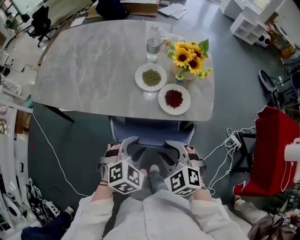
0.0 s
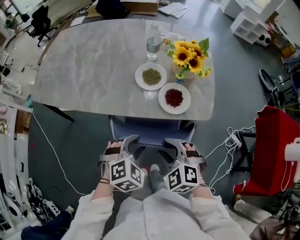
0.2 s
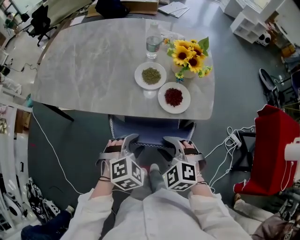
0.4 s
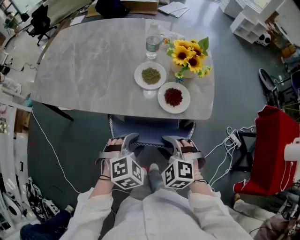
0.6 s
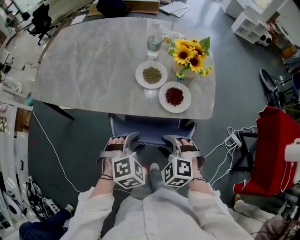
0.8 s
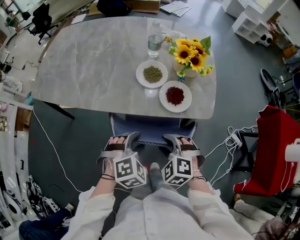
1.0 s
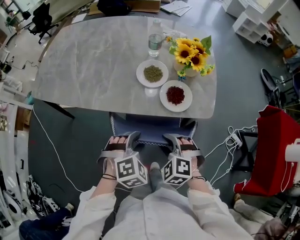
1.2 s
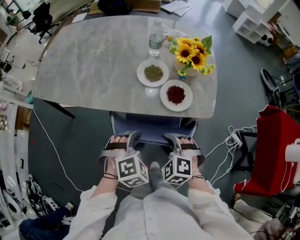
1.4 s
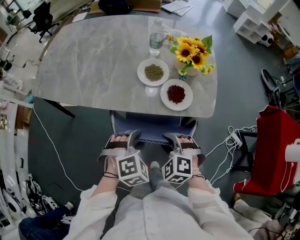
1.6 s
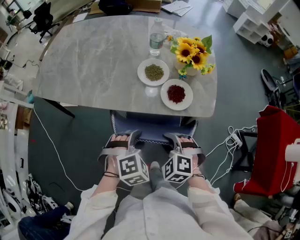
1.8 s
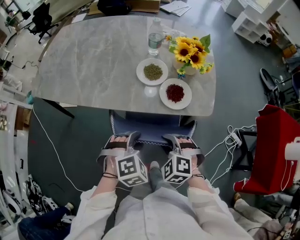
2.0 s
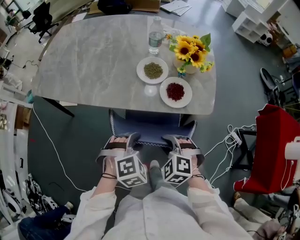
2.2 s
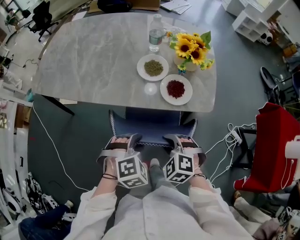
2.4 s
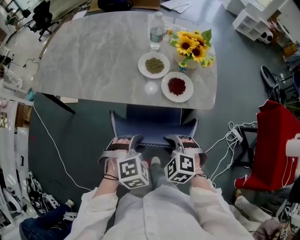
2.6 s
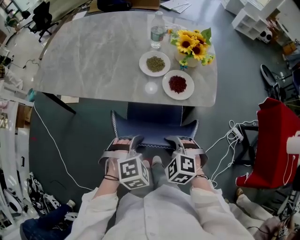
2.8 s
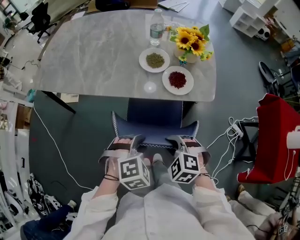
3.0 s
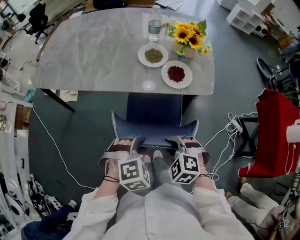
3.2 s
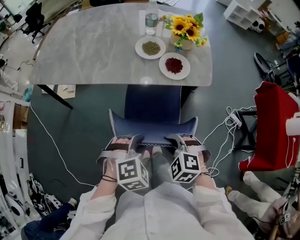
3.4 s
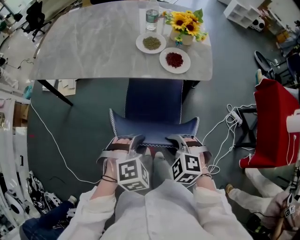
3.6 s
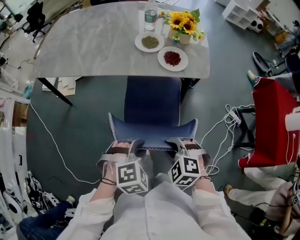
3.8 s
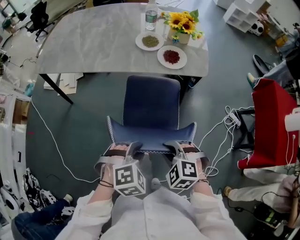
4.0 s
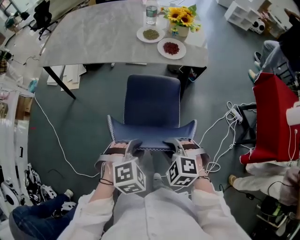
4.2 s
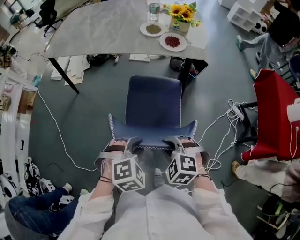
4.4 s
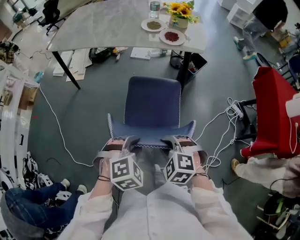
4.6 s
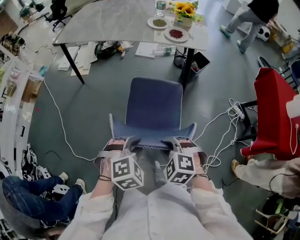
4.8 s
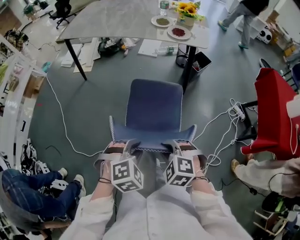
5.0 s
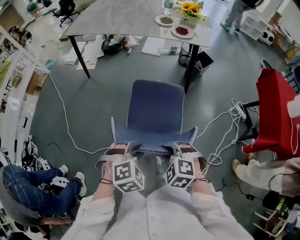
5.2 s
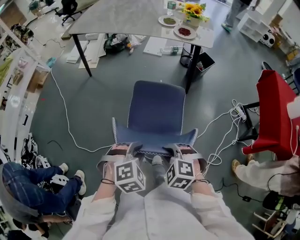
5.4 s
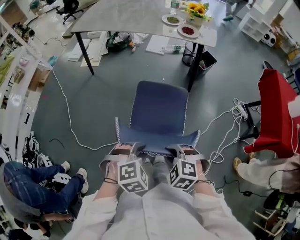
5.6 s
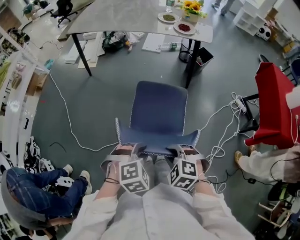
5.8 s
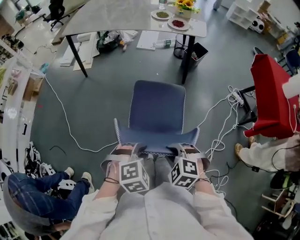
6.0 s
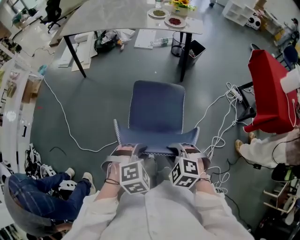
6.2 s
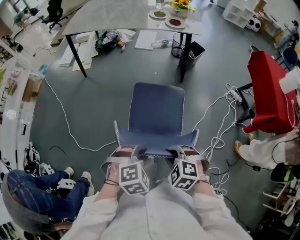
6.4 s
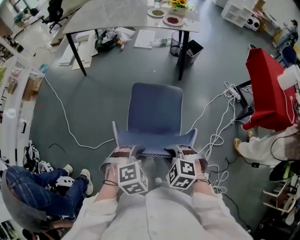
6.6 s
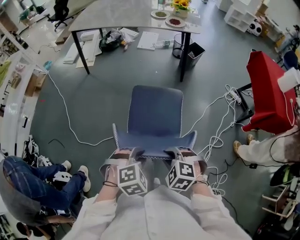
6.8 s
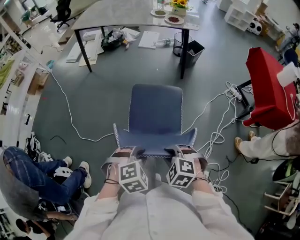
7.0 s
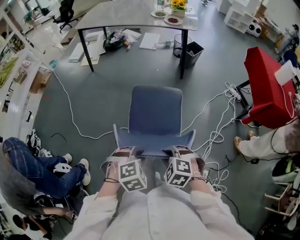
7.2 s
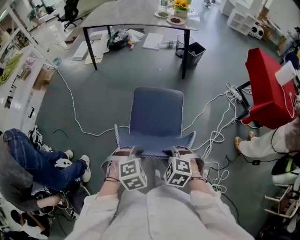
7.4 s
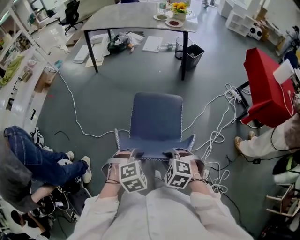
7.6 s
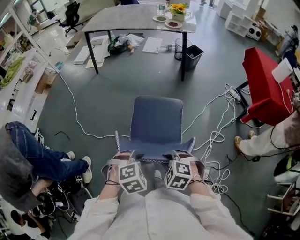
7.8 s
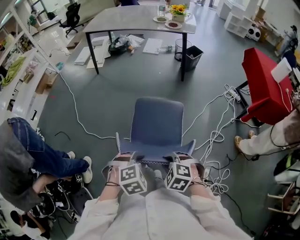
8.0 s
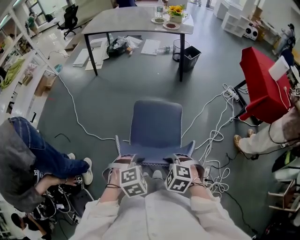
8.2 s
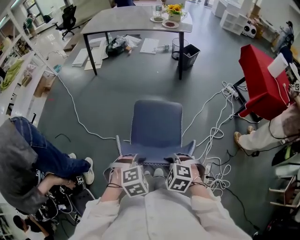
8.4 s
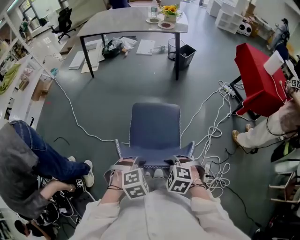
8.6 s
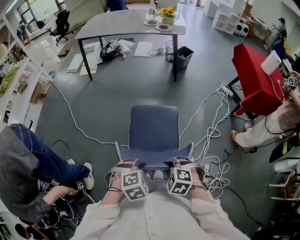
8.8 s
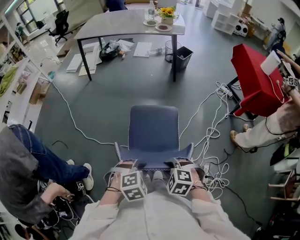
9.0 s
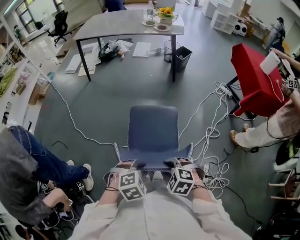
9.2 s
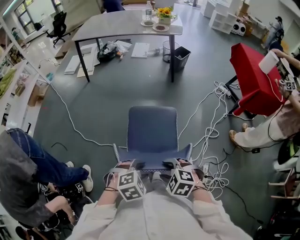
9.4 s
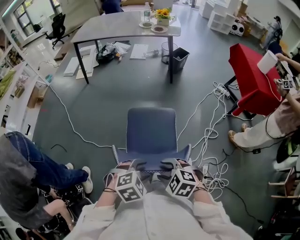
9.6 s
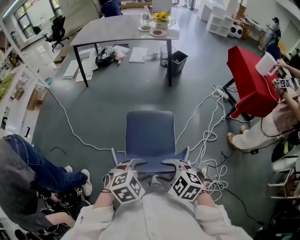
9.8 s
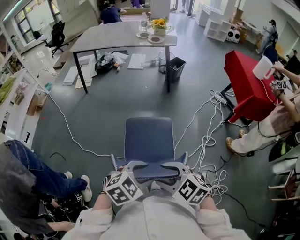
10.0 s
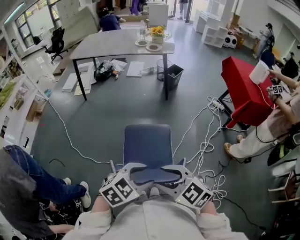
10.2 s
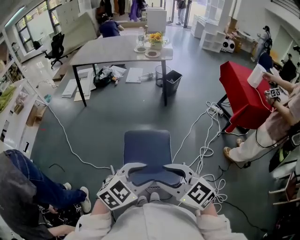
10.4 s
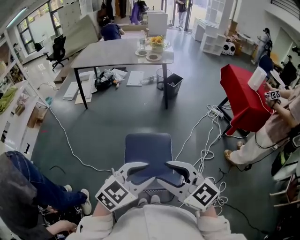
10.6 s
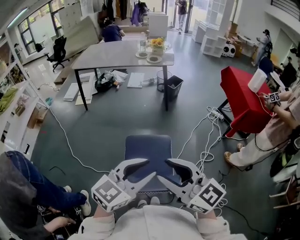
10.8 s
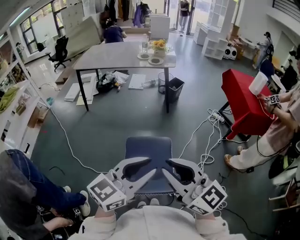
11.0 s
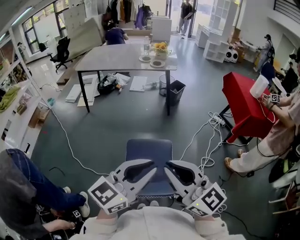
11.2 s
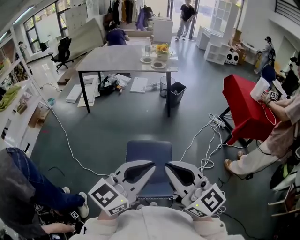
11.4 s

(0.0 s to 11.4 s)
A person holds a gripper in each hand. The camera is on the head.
0.0 s - 1.4 s: The right gripper shifts about 5 cm downward.
1.4 s - 2.8 s: Both grippers move backward, about 5 cm.
2.8 s - 4.2 s: The two grippers go about 25 cm backward.
4.2 s - 5.6 s: Both grippers move backward, roughly 30 cm.
5.6 s - 7.2 s: The grippers both shift backward by approximately 25 cm.
7.2 s - 8.6 s: The grippers both shift backward by some 15 cm.
8.6 s - 10.0 s: Both grippers move upward, about 10 cm. The right gripper changes its angle by roughly 30 degrees, and opens. Meanwhile the left gripper swivels roughly 30 degrees, and opens.
10.0 s - 11.4 s: The two grippers go some 20 cm upward. The right gripper points its fingers some 50 degrees further upward, and closes; the left gripper tilts its fingers roughly 50 degrees upward, and closes its fingers.

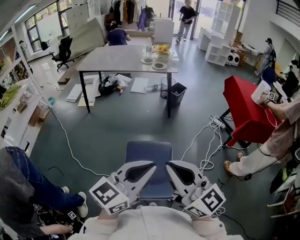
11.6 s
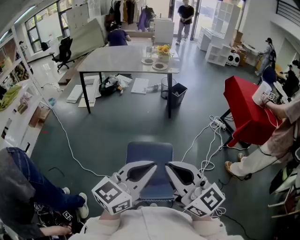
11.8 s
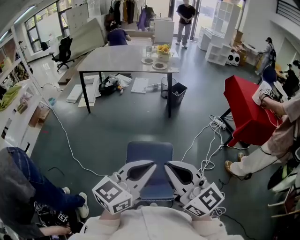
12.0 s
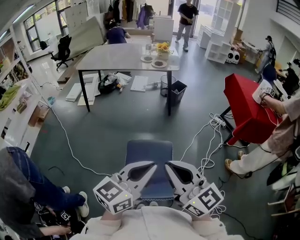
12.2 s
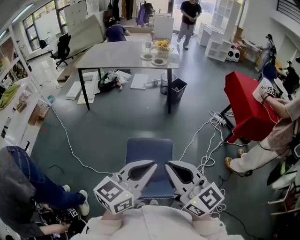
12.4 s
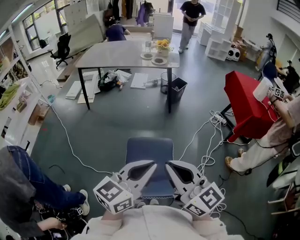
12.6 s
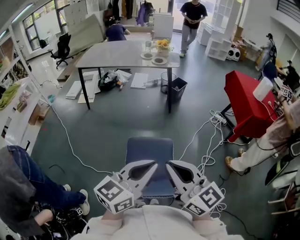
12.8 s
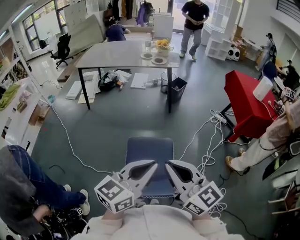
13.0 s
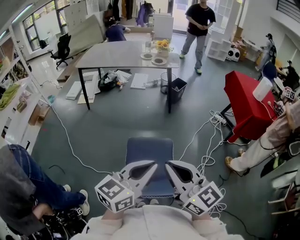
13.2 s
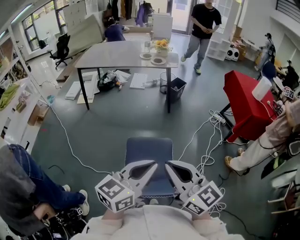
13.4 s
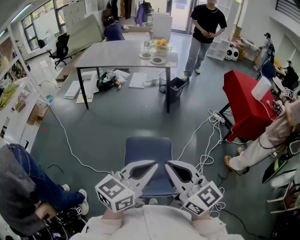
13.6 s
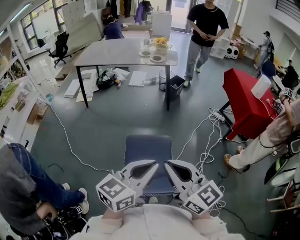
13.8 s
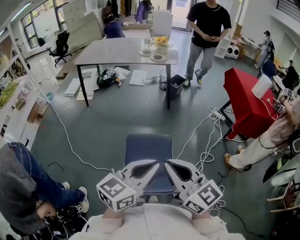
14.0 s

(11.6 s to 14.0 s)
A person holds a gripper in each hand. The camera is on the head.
11.6 s - 14.0 s: The grippers move only a little.

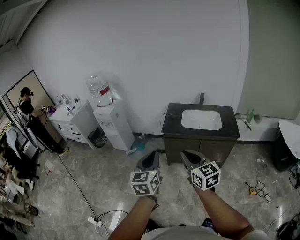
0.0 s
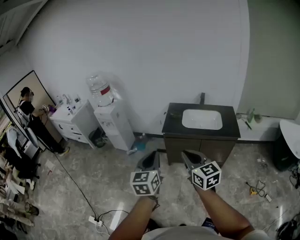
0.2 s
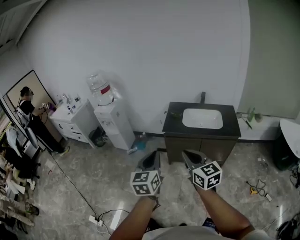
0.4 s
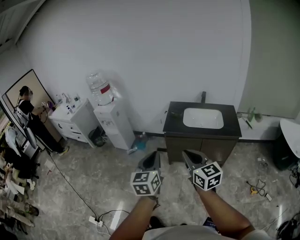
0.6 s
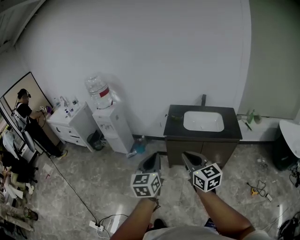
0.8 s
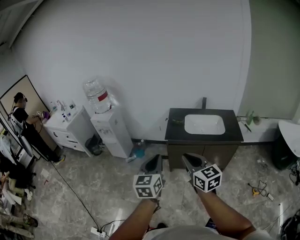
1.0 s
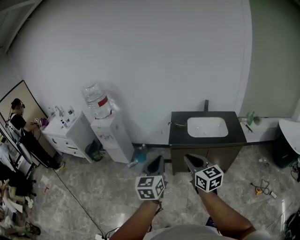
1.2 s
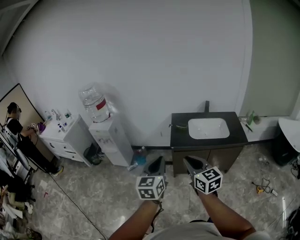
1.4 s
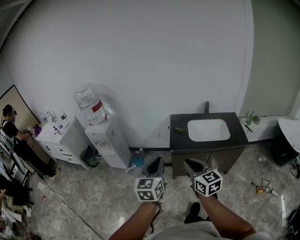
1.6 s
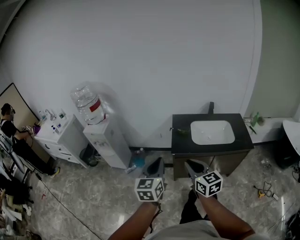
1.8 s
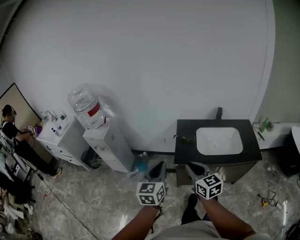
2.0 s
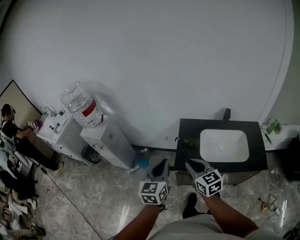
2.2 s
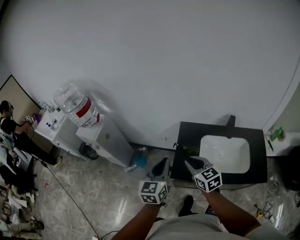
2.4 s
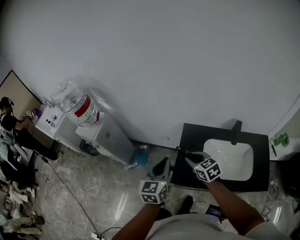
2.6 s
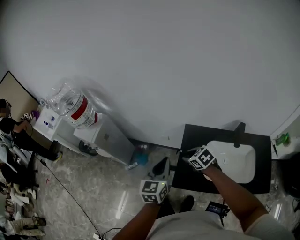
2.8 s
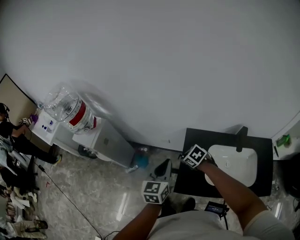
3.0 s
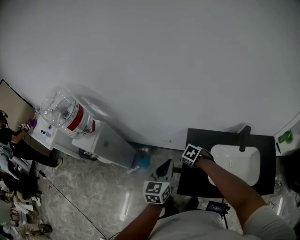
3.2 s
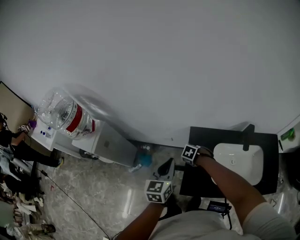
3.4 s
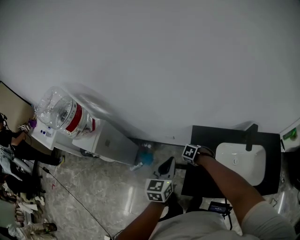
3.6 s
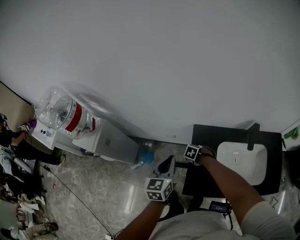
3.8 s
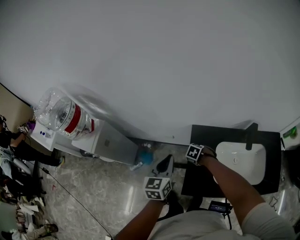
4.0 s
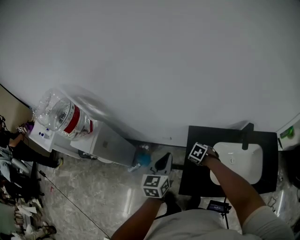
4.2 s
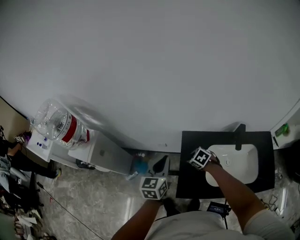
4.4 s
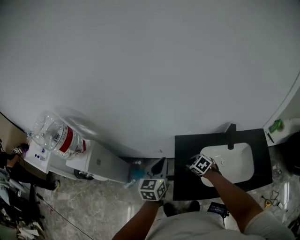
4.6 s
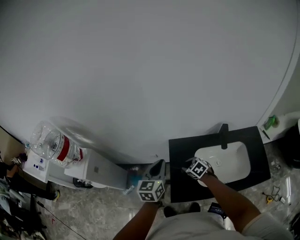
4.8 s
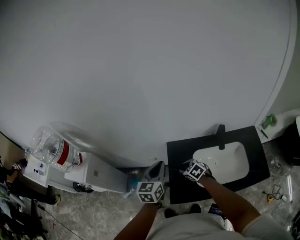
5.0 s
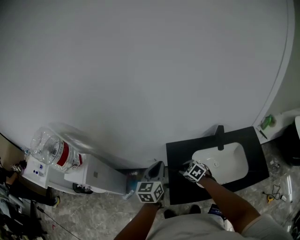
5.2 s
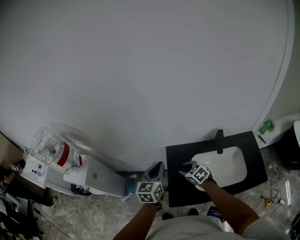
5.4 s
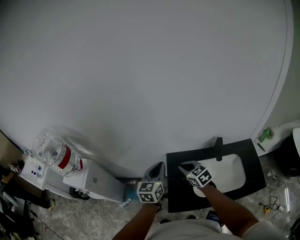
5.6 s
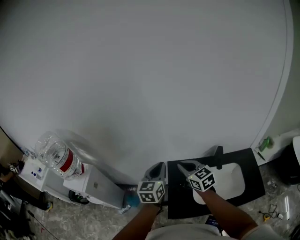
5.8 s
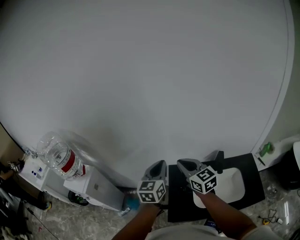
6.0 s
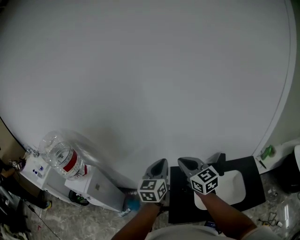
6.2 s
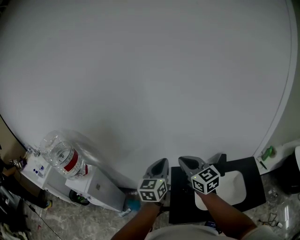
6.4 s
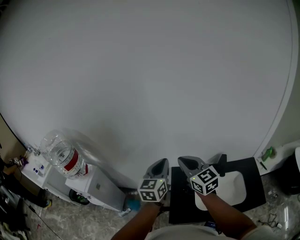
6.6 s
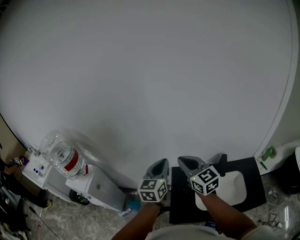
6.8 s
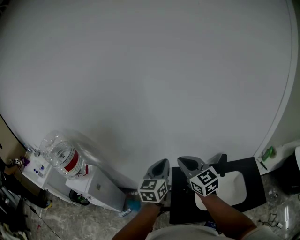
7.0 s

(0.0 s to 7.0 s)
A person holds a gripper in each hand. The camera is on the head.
0.0 s - 1.4 s: Both grippers travel together forward and to the left, roughly 20 cm.
1.4 s - 2.8 s: The two grippers travel together, forward, approximately 60 cm. The right gripper is displaced downward by approximately 25 cm, and tips its fingers downward by some 40 degrees.
2.8 s - 4.2 s: The left gripper shifts by roughly 15 cm. Meanwhile the right gripper shifts some 15 cm downward, and changes its angle by about 20 degrees.
4.2 s - 5.6 s: The right gripper goes approximately 25 cm upward, points its fingers about 30 degrees further upward, and closes its fingers. The left gripper goes approximately 10 cm upward.
5.6 s - 7.0 s: The left gripper goes roughly 10 cm upward; the right gripper goes about 20 cm upward, and turns by about 30 degrees.

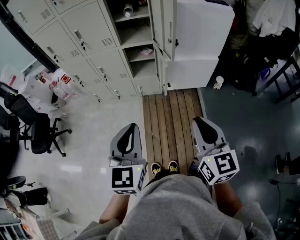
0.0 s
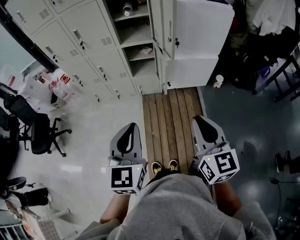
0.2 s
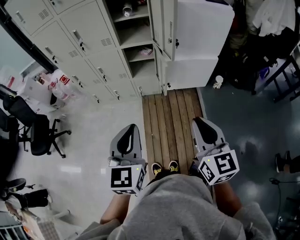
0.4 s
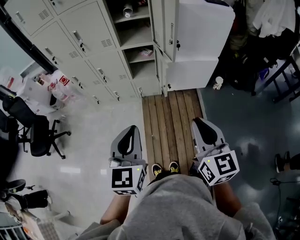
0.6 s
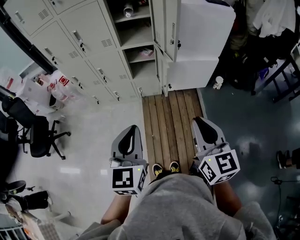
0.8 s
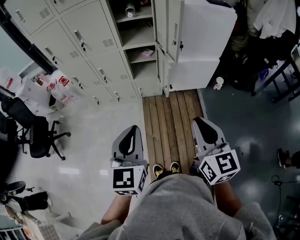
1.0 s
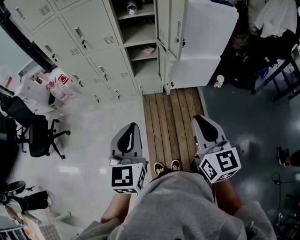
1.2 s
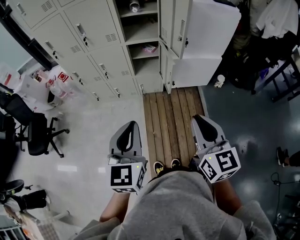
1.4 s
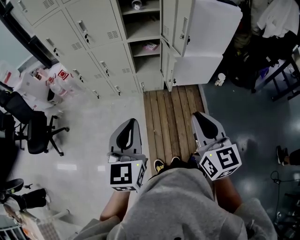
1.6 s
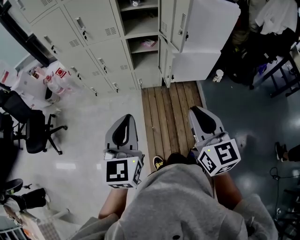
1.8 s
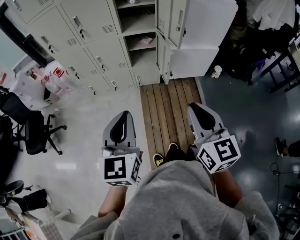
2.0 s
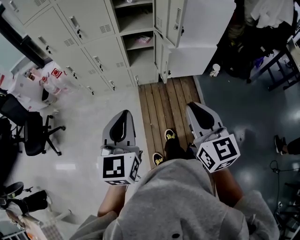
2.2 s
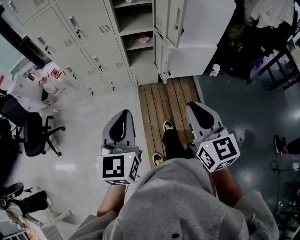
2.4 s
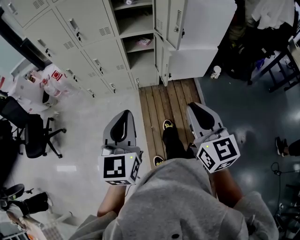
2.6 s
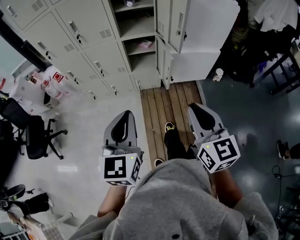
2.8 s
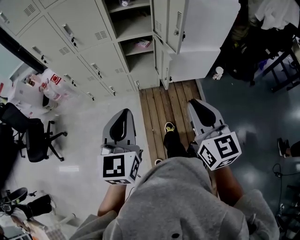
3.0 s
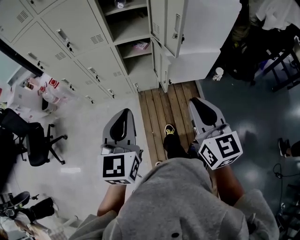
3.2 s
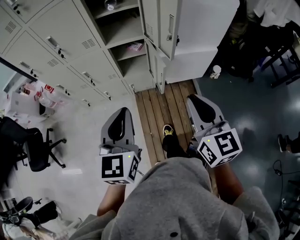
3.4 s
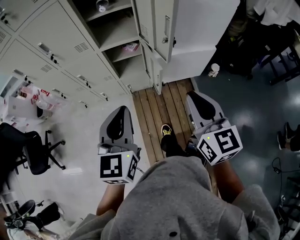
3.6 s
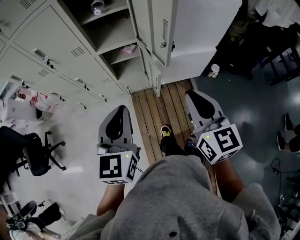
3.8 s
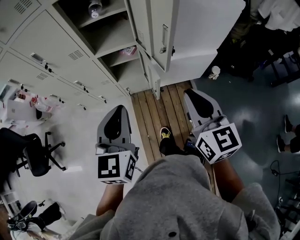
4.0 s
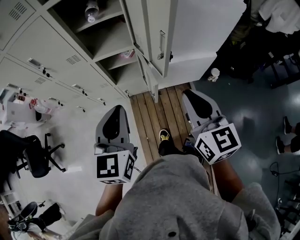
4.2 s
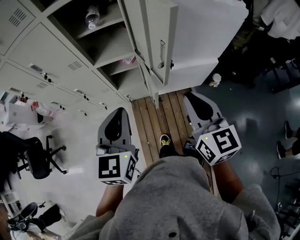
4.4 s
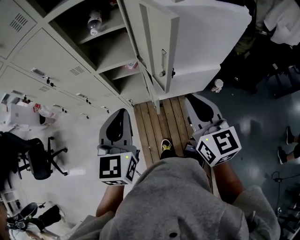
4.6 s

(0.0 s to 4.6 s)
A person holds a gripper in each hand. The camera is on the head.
0.0 s - 1.6 s: Both grippers move to the left, roughly 10 cm.
1.6 s - 3.0 s: Both grippers move forward, roughly 10 cm.
3.0 s - 4.6 s: The grippers both shift forward by approximately 25 cm.
